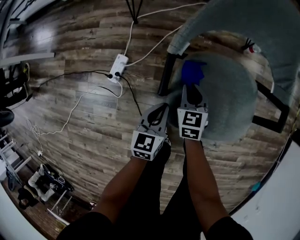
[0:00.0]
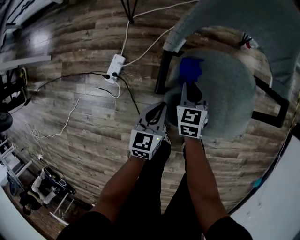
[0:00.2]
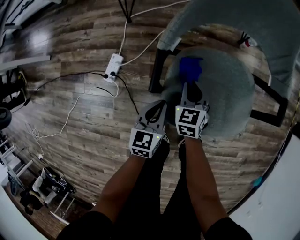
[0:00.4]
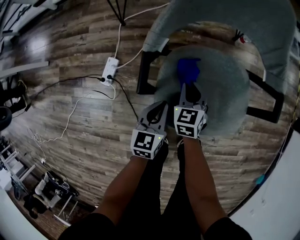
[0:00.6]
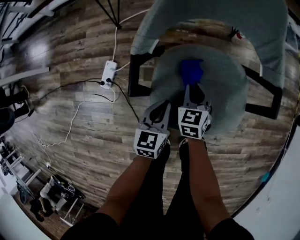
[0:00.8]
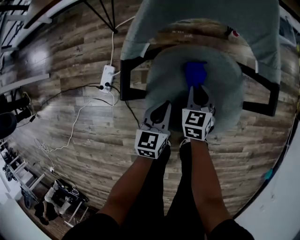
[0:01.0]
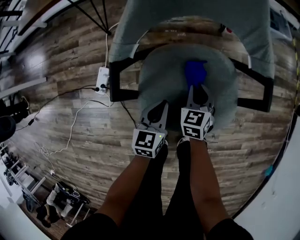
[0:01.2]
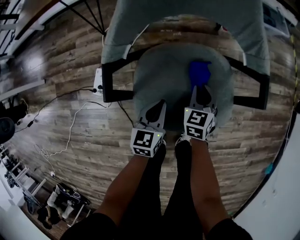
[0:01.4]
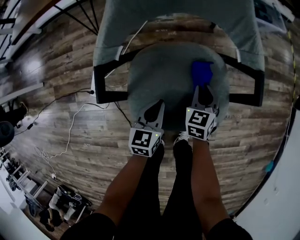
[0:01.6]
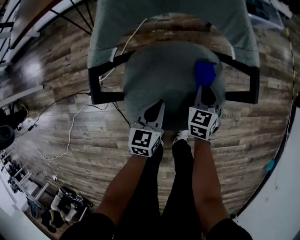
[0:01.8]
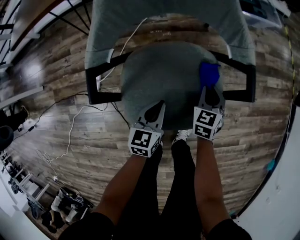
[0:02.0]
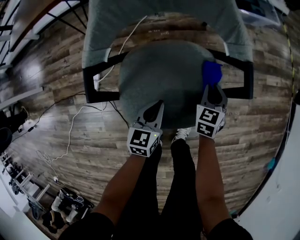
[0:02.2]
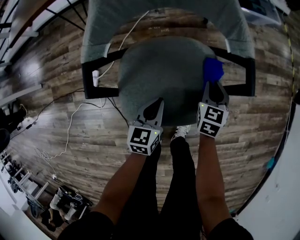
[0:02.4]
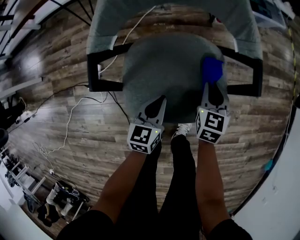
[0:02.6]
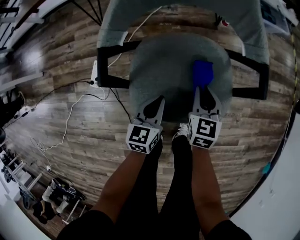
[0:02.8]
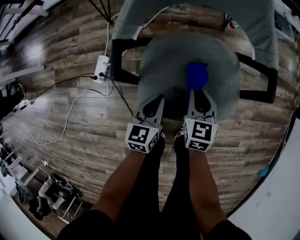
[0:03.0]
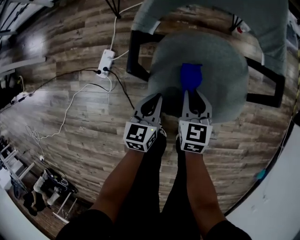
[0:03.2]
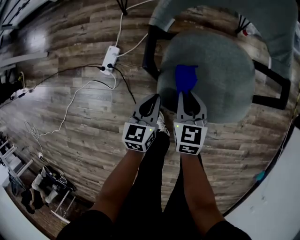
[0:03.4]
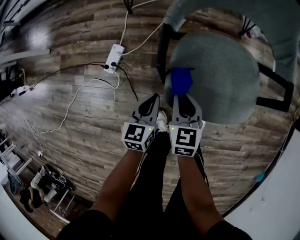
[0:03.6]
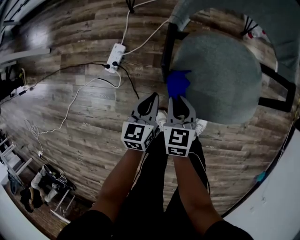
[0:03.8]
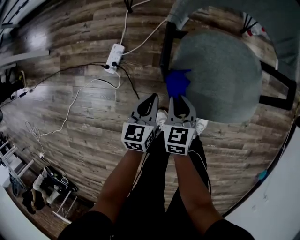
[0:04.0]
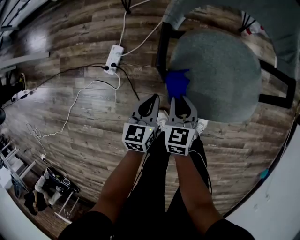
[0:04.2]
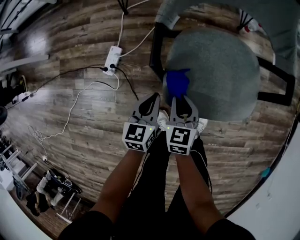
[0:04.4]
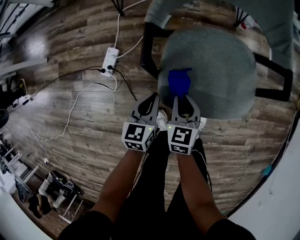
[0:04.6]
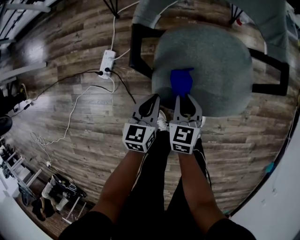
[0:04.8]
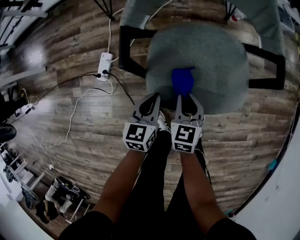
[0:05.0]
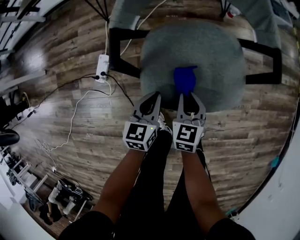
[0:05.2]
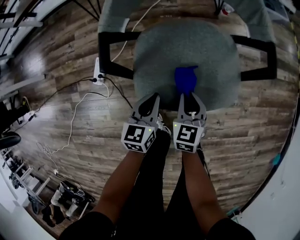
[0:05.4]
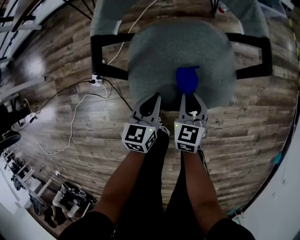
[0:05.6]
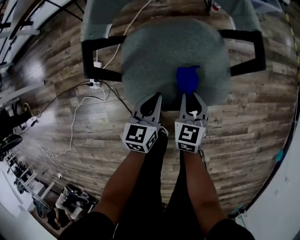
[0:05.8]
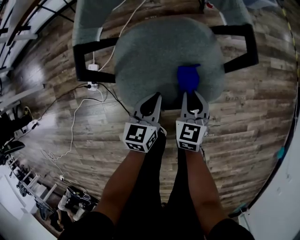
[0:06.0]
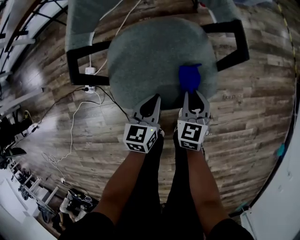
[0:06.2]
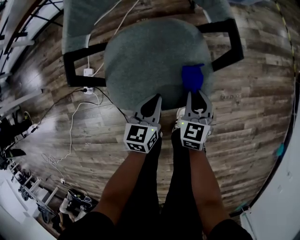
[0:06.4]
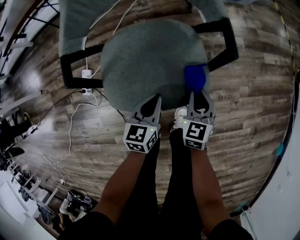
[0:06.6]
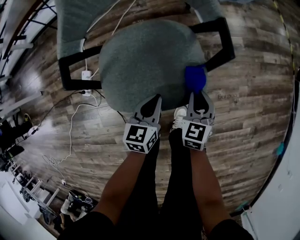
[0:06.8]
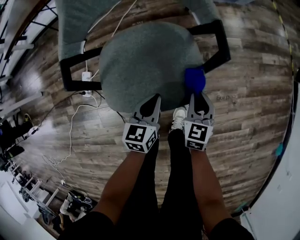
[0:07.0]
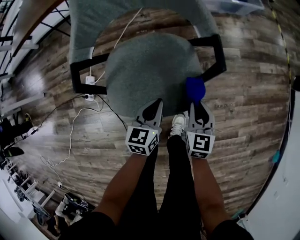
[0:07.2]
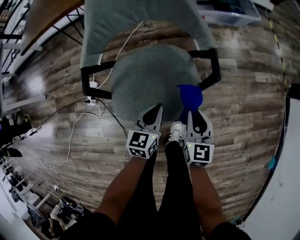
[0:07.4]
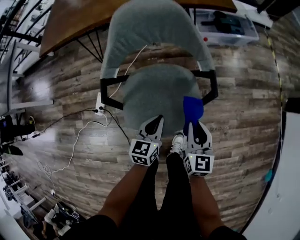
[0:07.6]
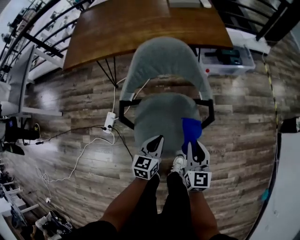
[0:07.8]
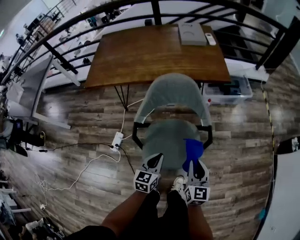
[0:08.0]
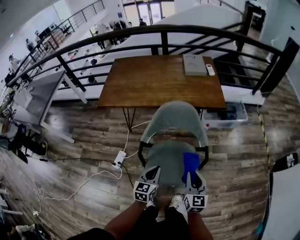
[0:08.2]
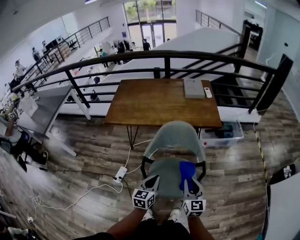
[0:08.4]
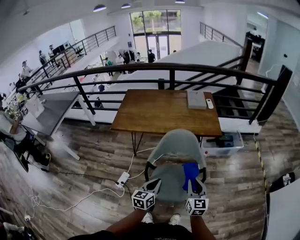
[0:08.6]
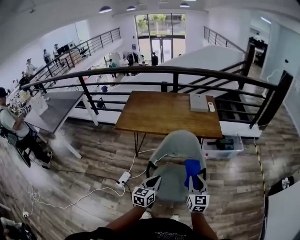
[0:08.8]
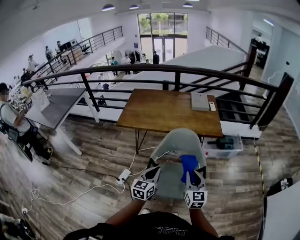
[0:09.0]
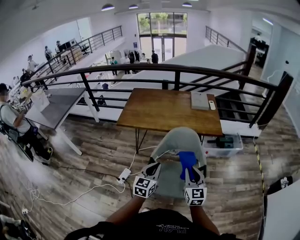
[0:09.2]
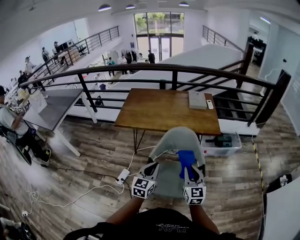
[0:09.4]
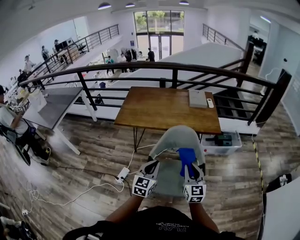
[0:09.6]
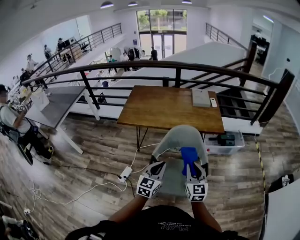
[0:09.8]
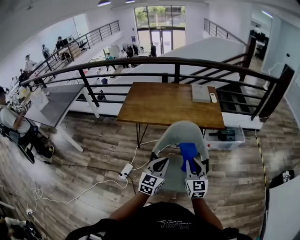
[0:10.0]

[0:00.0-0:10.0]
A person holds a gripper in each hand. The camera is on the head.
0:00.0 to 0:01.4: The left gripper heads to the right, covering roughly 15 cm, while the right gripper shifts some 20 cm to the right.
0:01.4 to 0:02.8: The right gripper goes to the right and returns, about 10 cm each way.
0:02.8 to 0:04.2: The left gripper moves to the left, some 15 cm; the right gripper travels to the left and backward by about 25 cm.
0:04.2 to 0:05.8: Both grippers move to the right, roughly 20 cm.
0:05.8 to 0:07.2: The two grippers go about 10 cm to the right.
0:07.2 to 0:08.6: Both grippers move upward, approximately 40 cm. The right gripper rotates roughly 30 degrees.
0:08.6 to 0:10.0: The left gripper travels upward by approximately 10 cm, and swivels approximately 20 degrees. Meanwhile the right gripper goes some 10 cm upward and to the left.

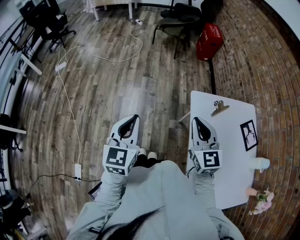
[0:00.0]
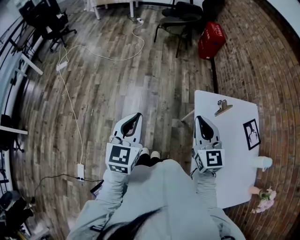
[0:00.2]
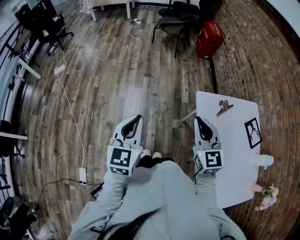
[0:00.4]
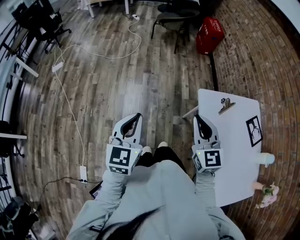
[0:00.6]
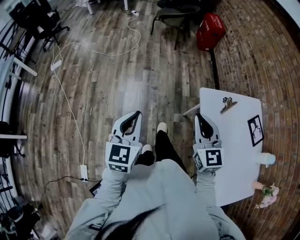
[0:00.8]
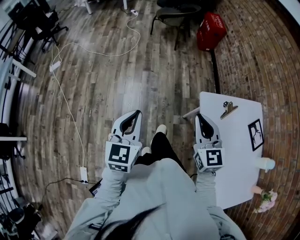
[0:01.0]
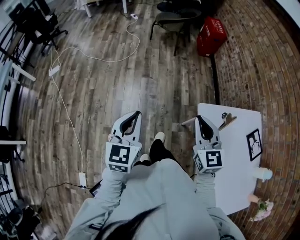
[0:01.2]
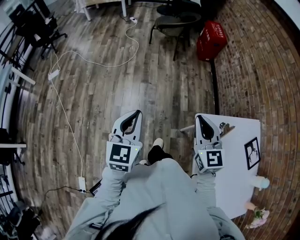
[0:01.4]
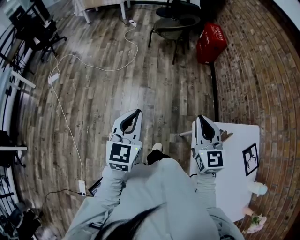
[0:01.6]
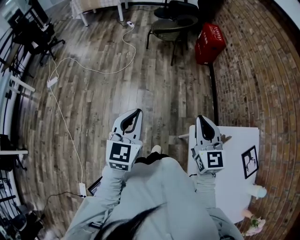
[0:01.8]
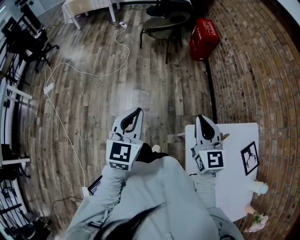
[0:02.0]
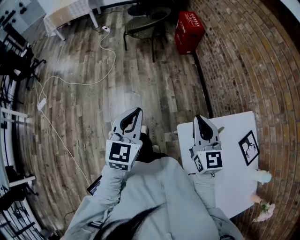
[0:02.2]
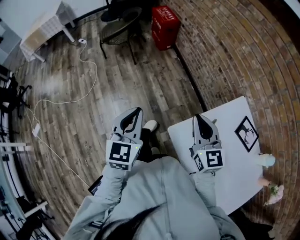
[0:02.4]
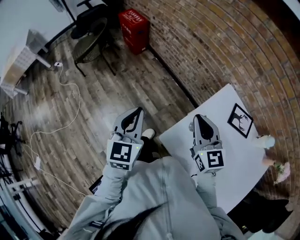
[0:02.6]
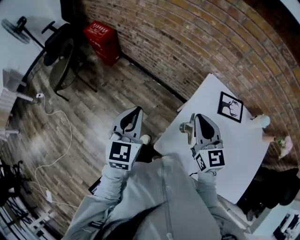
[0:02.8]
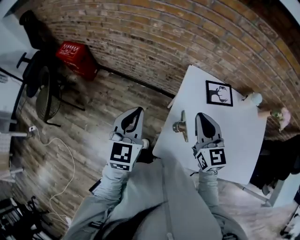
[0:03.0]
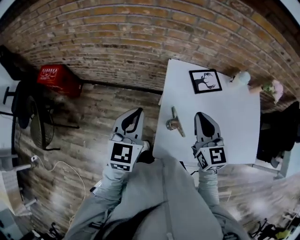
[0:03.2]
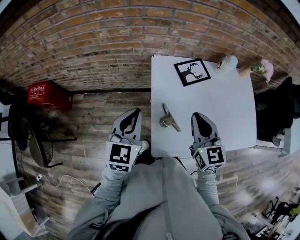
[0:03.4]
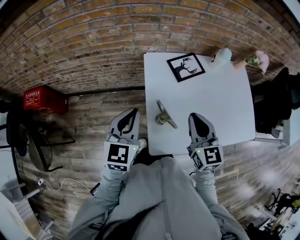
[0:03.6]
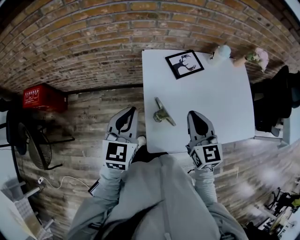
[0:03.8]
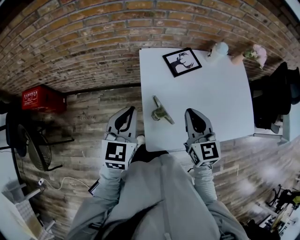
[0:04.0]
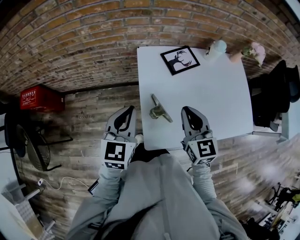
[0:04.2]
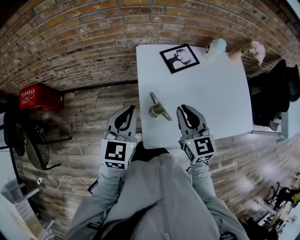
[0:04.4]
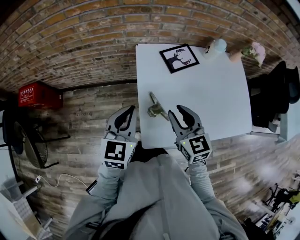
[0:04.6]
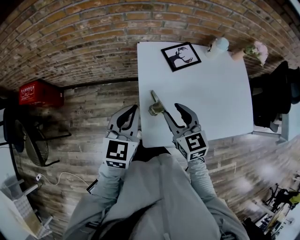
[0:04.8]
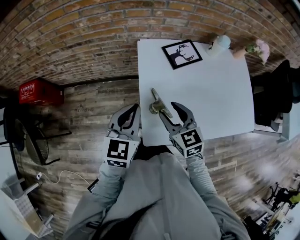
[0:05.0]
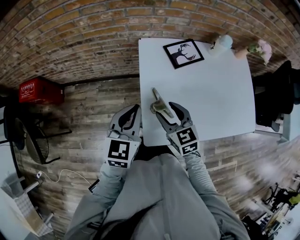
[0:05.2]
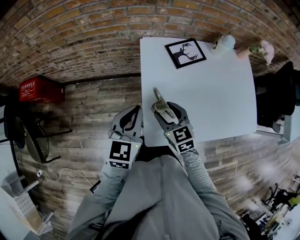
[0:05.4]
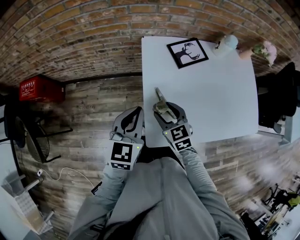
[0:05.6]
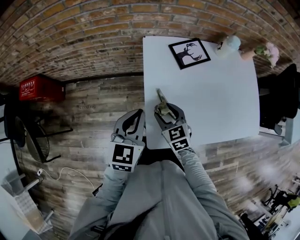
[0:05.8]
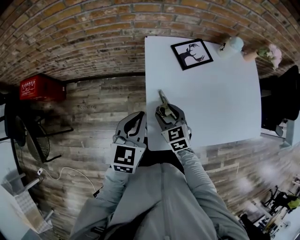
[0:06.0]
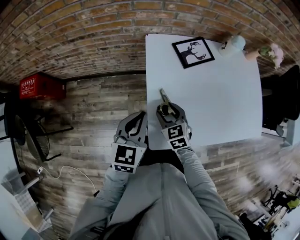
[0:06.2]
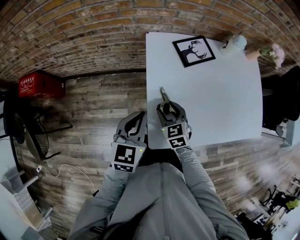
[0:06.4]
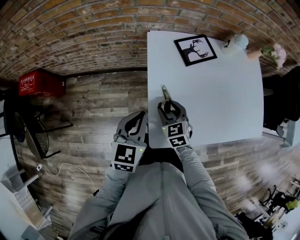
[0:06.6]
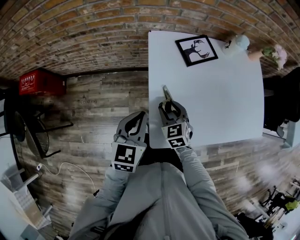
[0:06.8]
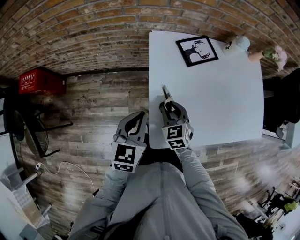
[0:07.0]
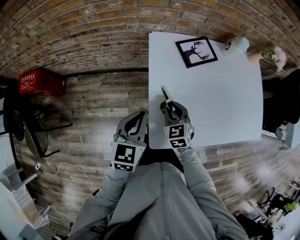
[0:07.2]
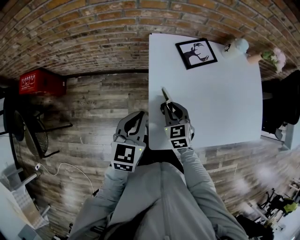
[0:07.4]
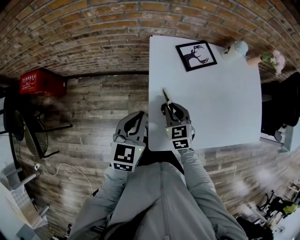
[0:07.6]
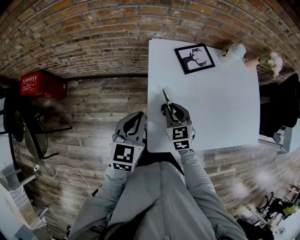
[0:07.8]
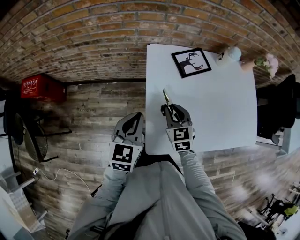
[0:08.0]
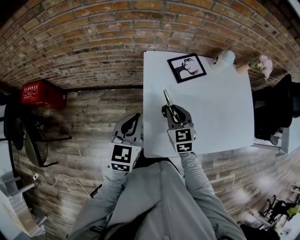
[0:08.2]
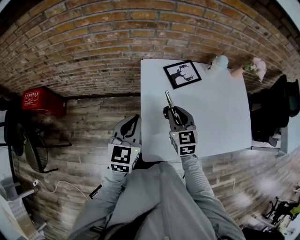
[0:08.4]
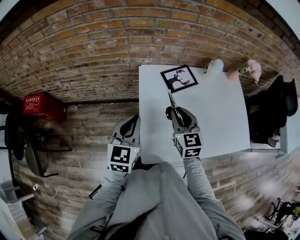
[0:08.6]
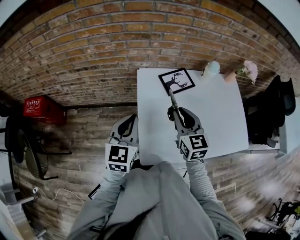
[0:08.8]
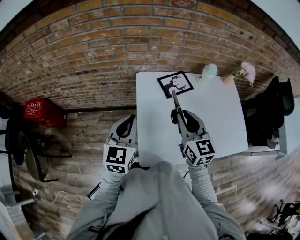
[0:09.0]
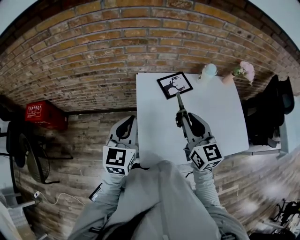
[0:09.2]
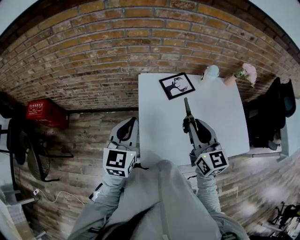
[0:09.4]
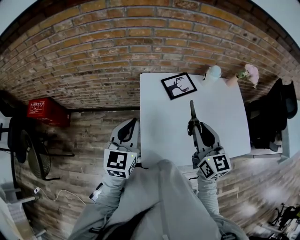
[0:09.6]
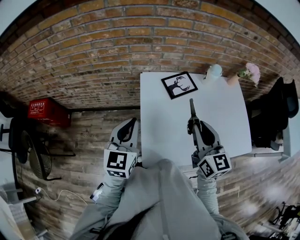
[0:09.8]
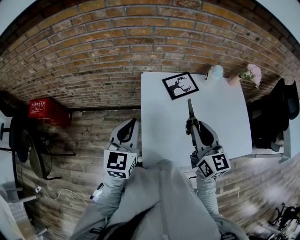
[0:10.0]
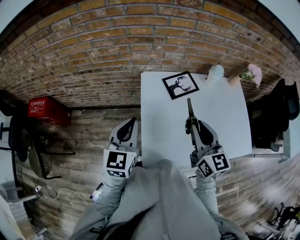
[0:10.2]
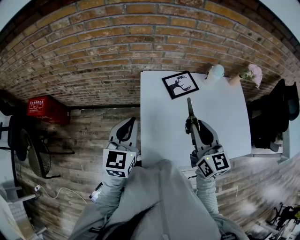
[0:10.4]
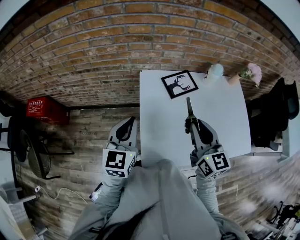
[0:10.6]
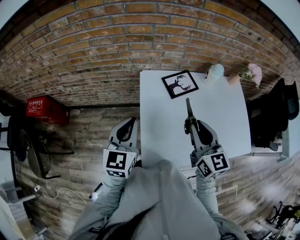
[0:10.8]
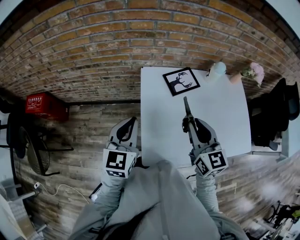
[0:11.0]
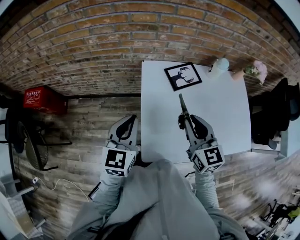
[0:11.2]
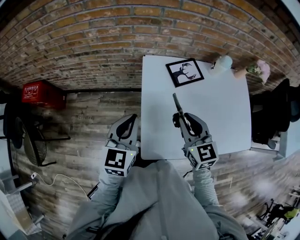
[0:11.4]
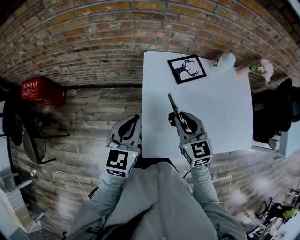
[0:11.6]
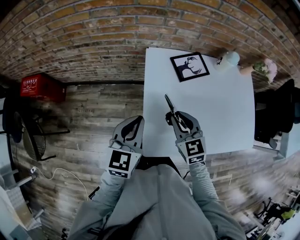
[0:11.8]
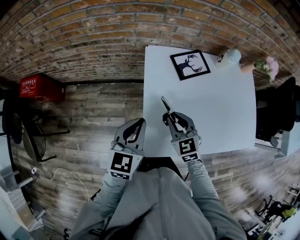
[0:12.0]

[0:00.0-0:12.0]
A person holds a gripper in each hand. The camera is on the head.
0:00.0 to 0:01.6: Both grippers move forward, about 25 cm.
0:01.6 to 0:03.0: The right gripper shifts by about 30 cm, and turns by some 70 degrees; the left gripper ends up approximately 50 cm from where it was, and changes its angle by approximately 70 degrees.
0:03.0 to 0:04.4: The left gripper moves some 10 cm, and rotates some 30 degrees. Meanwhile the right gripper ends up some 10 cm from where it was, and swivels some 20 degrees.
0:04.4 to 0:06.0: The right gripper goes about 20 cm downward and to the left, swivels some 20 degrees, and opens its fingers. Meanwhile the left gripper moves downward, roughly 5 cm.
0:06.0 to 0:07.6: The right gripper closes.
0:07.6 to 0:09.0: The left gripper travels upward by approximately 10 cm. The right gripper shifts roughly 20 cm upward, and turns by some 30 degrees.
0:10.4 to 0:12.0: The left gripper moves downward, some 5 cm, while the right gripper heads downward and to the left, covering about 20 cm, and changes its angle by roughly 30 degrees.

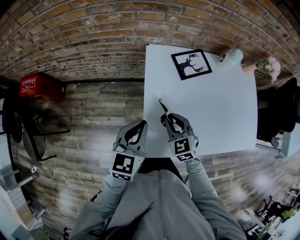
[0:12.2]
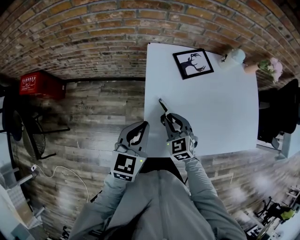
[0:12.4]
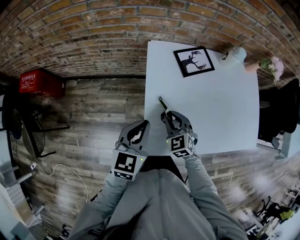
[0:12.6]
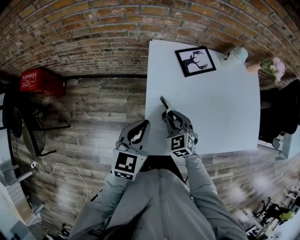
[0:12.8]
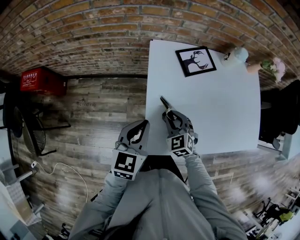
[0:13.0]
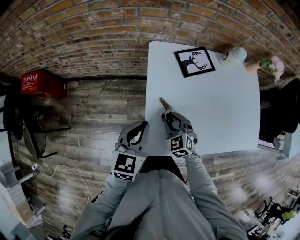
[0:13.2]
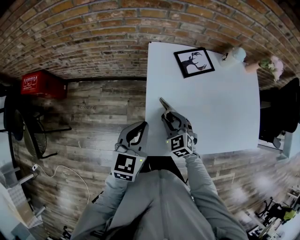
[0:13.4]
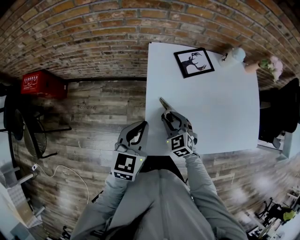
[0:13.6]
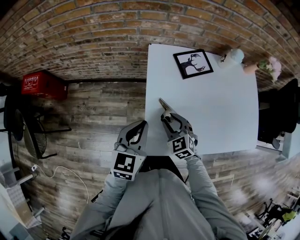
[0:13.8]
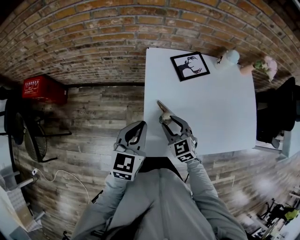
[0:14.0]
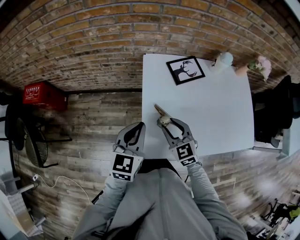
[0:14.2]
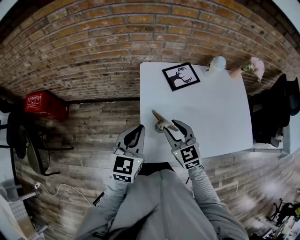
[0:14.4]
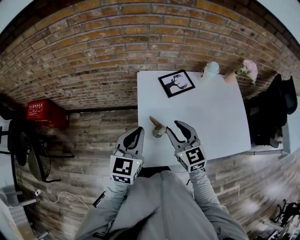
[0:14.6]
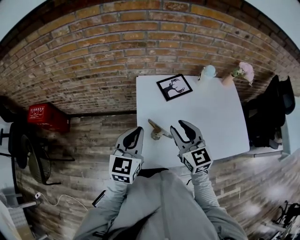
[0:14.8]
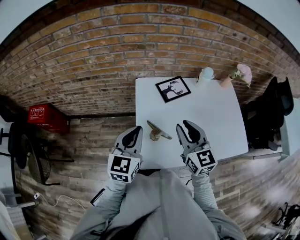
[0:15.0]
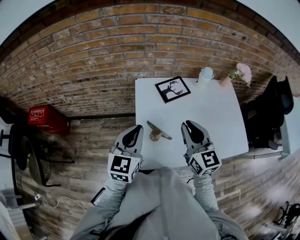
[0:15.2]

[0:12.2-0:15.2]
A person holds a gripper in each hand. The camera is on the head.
0:12.2 to 0:13.8: There are only small adjustments of the grippers.
0:13.8 to 0:15.2: The right gripper shifts about 25 cm upward and to the right, and angles its fingers upward, by some 30 degrees. The left gripper moves upward, approximately 10 cm.
